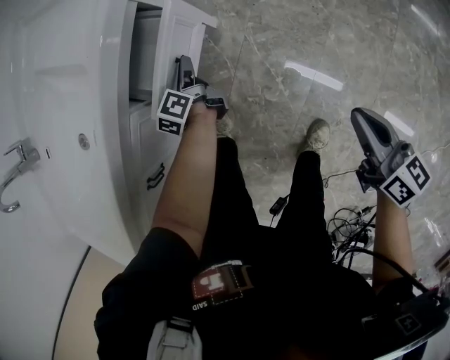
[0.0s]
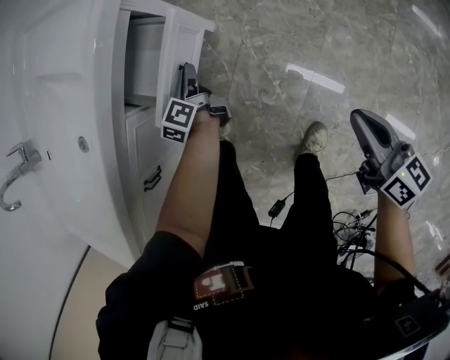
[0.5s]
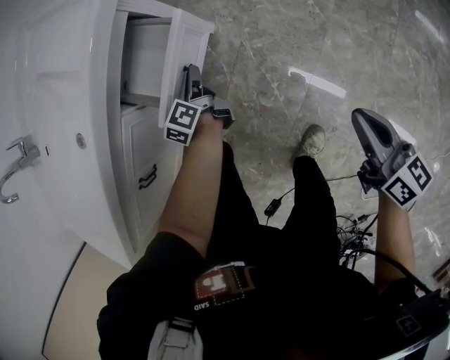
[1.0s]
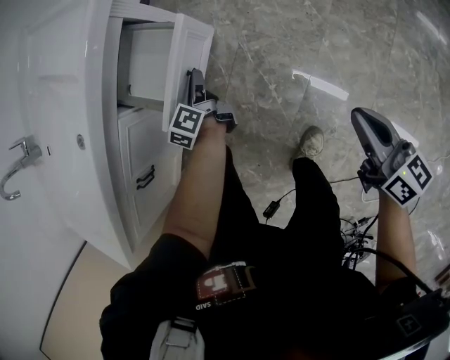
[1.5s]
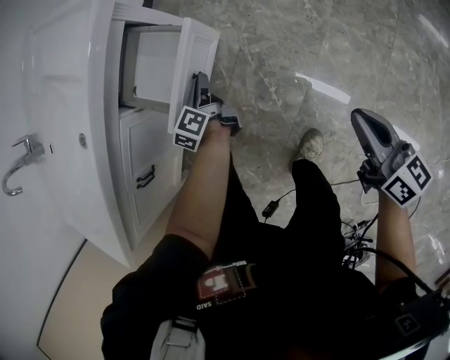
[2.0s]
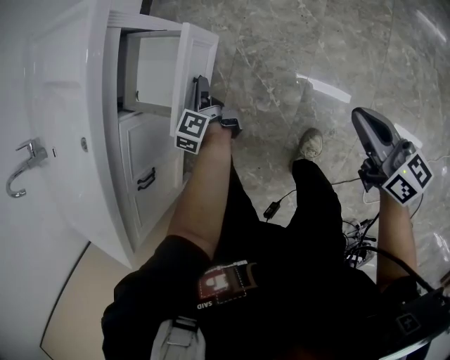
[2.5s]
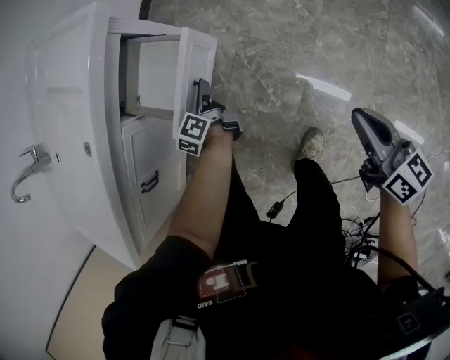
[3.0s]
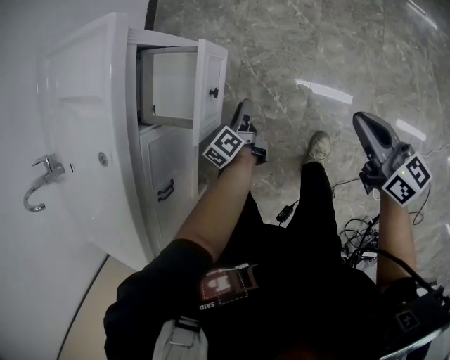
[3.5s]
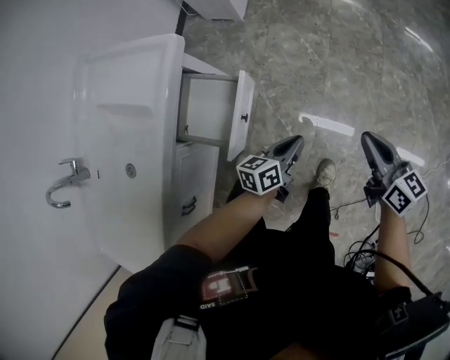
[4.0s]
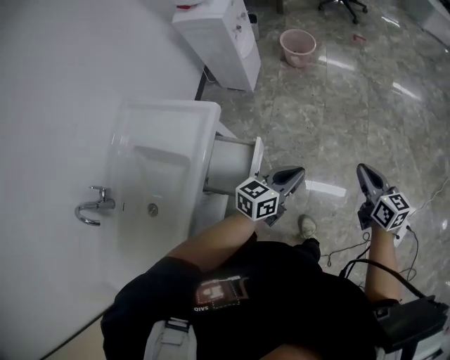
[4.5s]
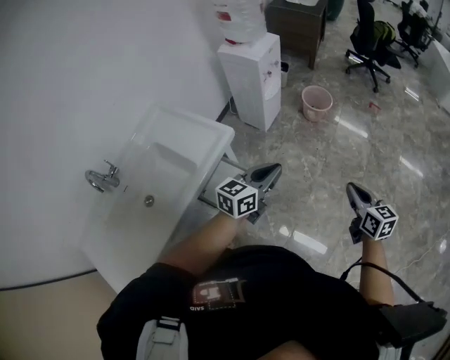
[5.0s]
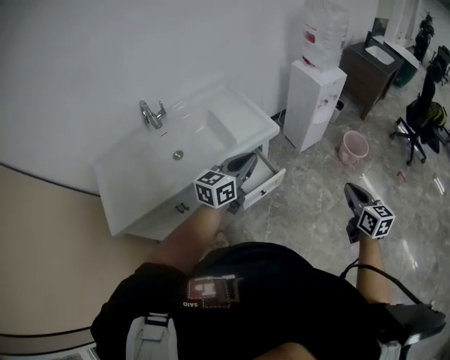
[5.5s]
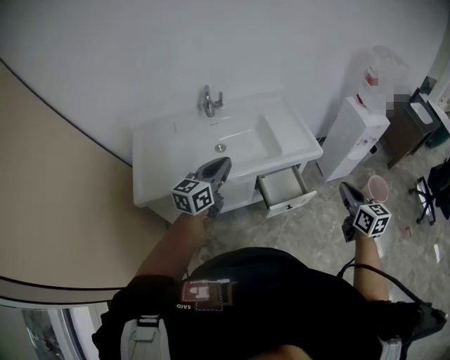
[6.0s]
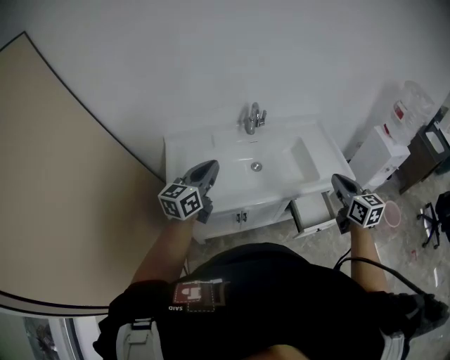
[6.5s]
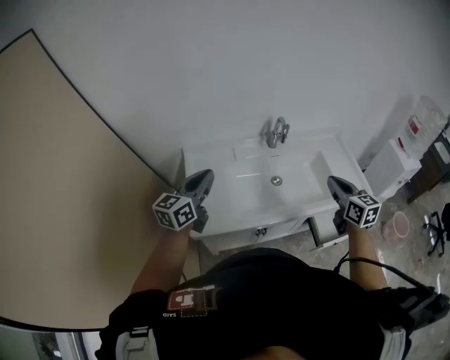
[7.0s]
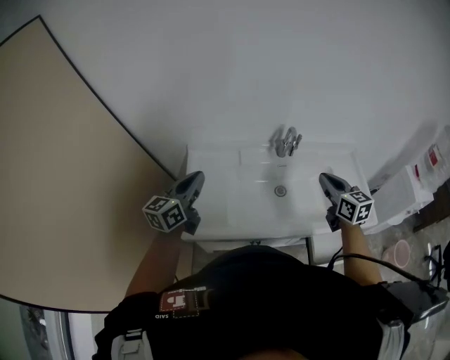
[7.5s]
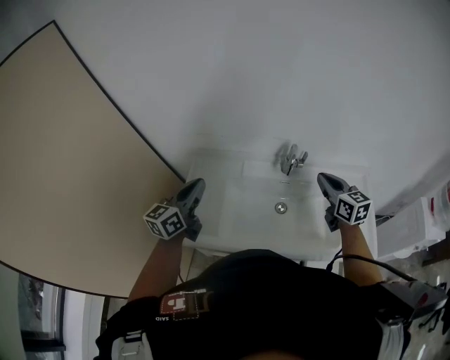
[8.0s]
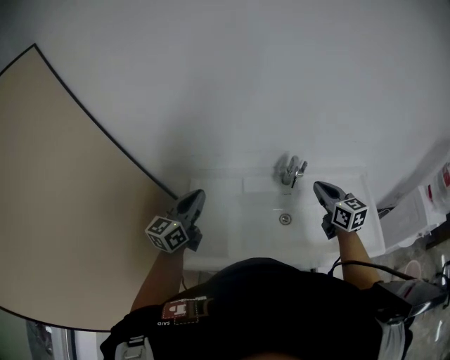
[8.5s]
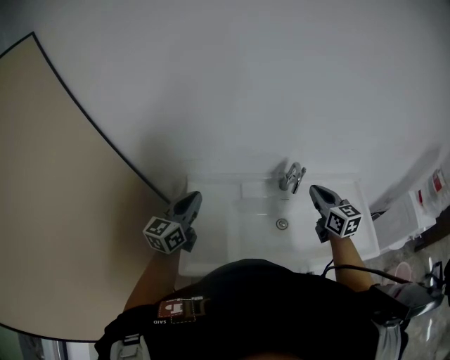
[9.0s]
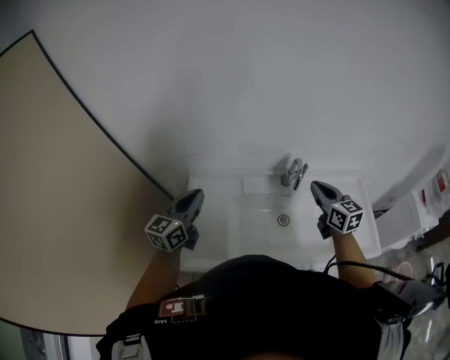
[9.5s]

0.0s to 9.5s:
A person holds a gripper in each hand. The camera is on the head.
0.0s to 2.0s: The right gripper goes some 5 cm to the right, while the left gripper goes about 10 cm backward and to the right.
2.0s to 4.0s: The right gripper is displaced upward by approximately 10 cm. The left gripper ends up some 25 cm from where it was, rotates about 60 degrees, and closes.
4.0s to 5.5s: The right gripper heads upward, covering roughly 25 cm, and swivels roughly 40 degrees, while the left gripper travels upward by some 40 cm, and changes its angle by approximately 50 degrees.
5.5s to 7.5s: Both grippers are carried some 70 cm. The left gripper changes its angle by approximately 40 degrees, while the right gripper swivels roughly 40 degrees.
7.5s to 9.5s: The grippers both shift forward by about 10 cm.

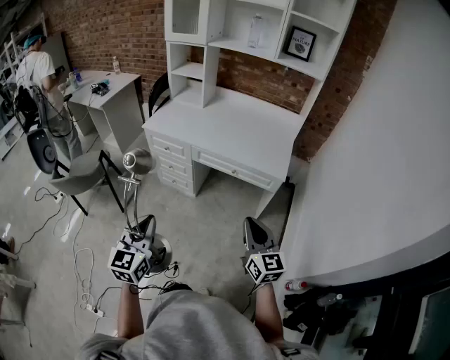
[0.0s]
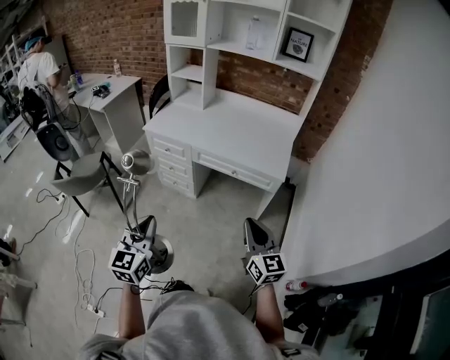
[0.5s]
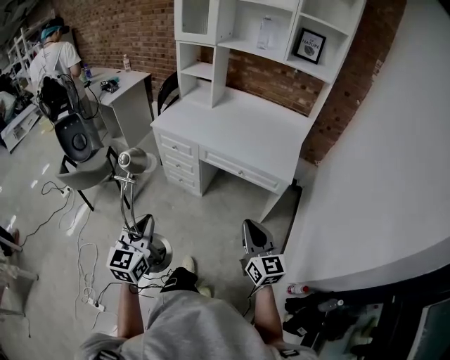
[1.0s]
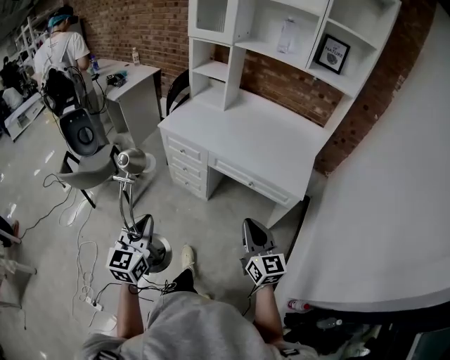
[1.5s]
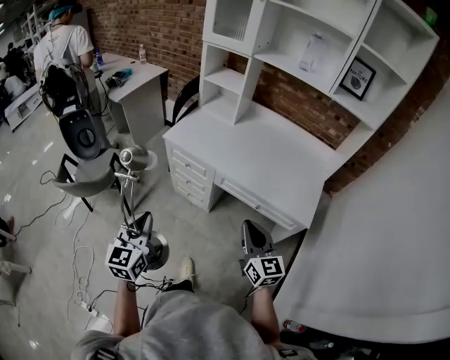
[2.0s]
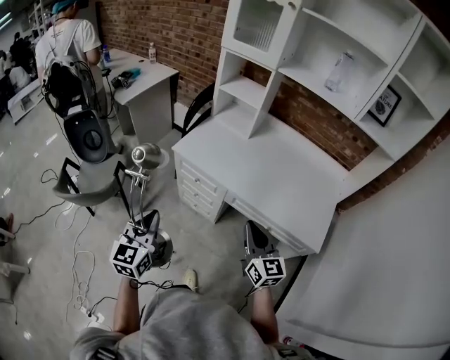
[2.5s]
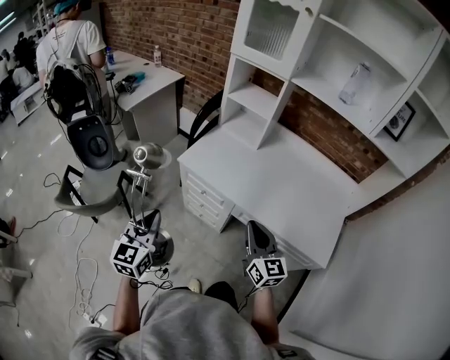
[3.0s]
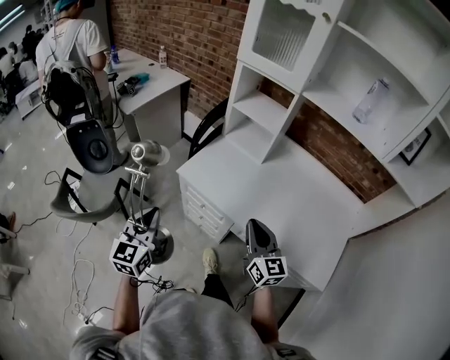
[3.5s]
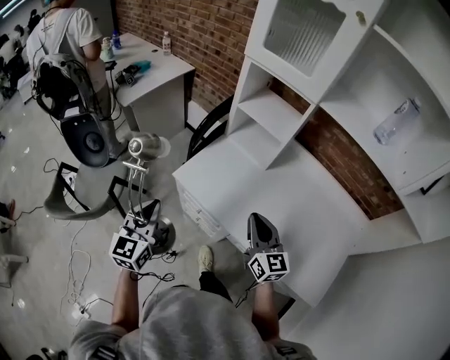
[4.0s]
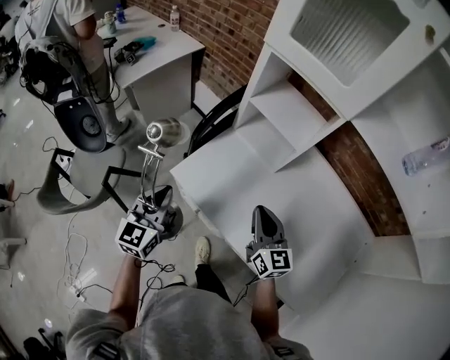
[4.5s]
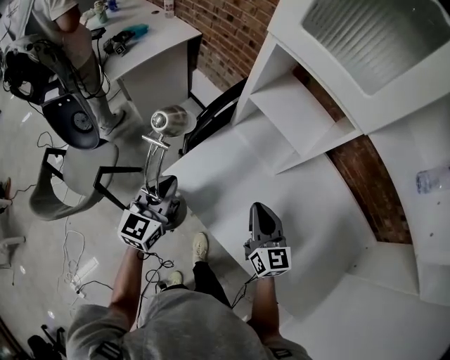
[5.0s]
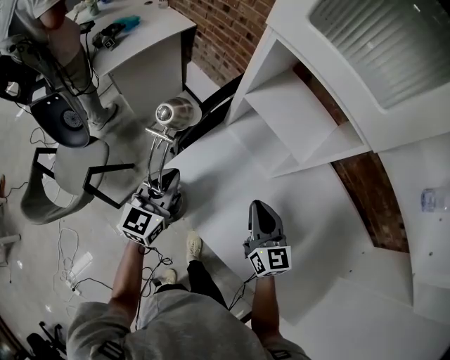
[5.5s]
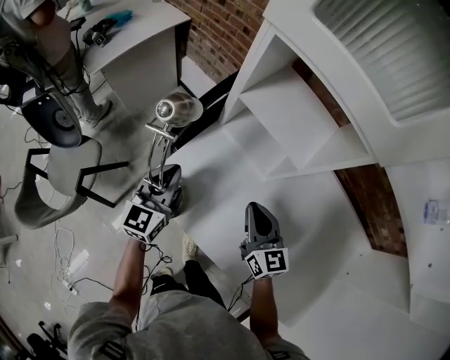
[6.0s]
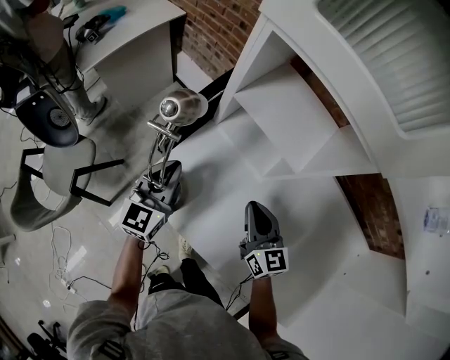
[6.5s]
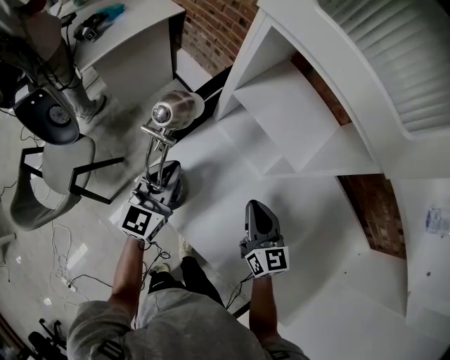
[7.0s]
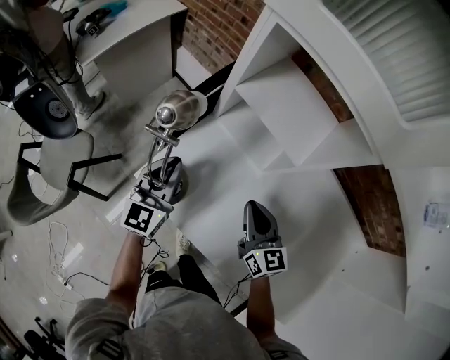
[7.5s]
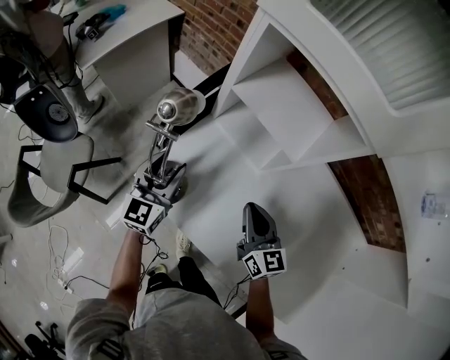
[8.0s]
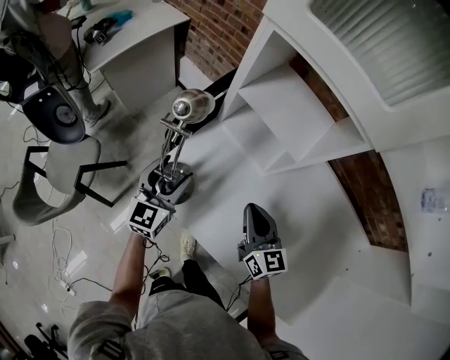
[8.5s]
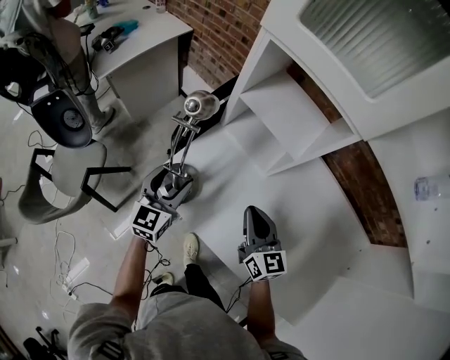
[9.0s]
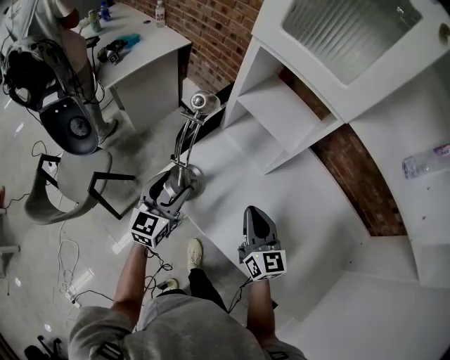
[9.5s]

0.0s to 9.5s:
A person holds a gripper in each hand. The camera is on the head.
0.0s to 2.0s: Both grippers move forward and to the left, approximately 20 cm.
2.0s to 4.0s: Both grippers move forward, approximately 40 cm.
4.0s to 5.5s: Both grippers move forward and downward, about 20 cm.
5.5s to 7.5s: The left gripper moves roughly 5 cm.
7.5s to 9.5s: The right gripper goes roughly 10 cm backward and upward, while the left gripper goes approximately 10 cm backward, and opens up.

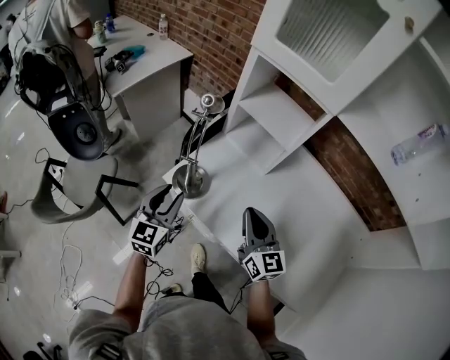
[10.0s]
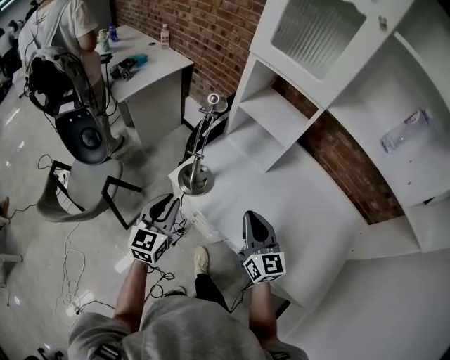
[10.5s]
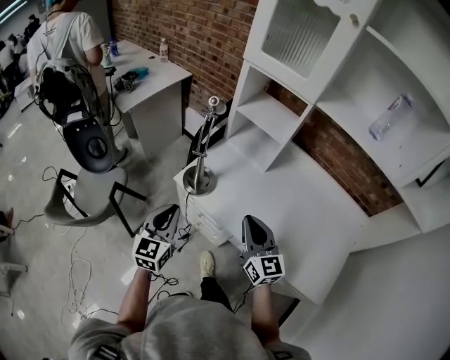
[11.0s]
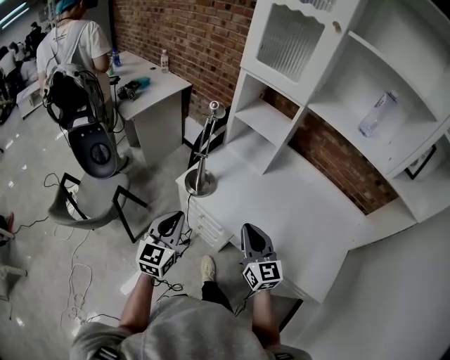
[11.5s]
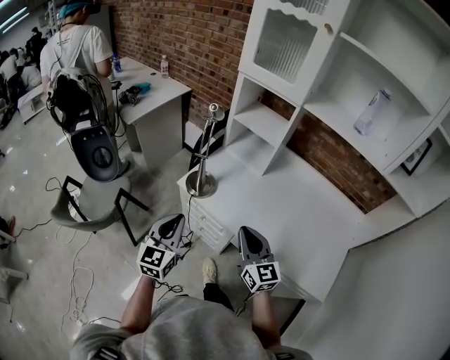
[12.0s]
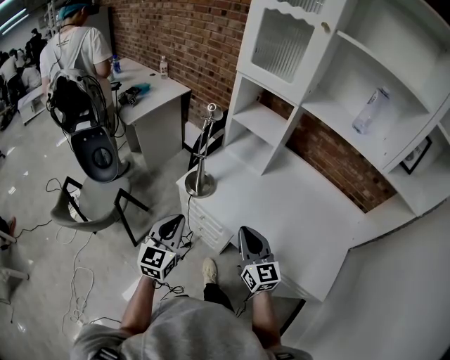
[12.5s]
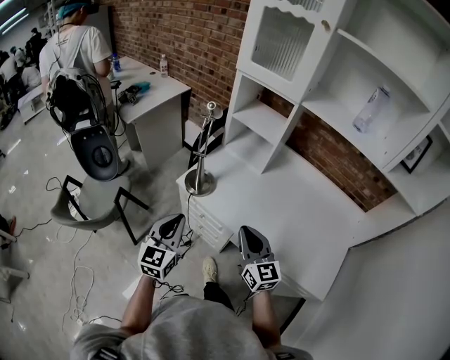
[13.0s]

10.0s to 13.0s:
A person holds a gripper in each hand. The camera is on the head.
10.0s to 11.5s: Both grippers travel together backward, roughly 15 cm. The left gripper closes.
11.5s to 13.0s: The grippers stay close to where they were, moving slightly.

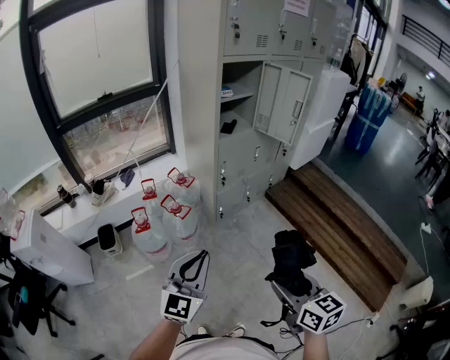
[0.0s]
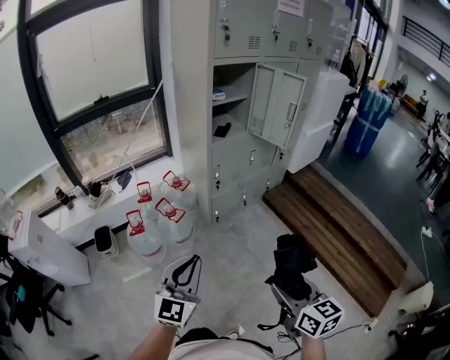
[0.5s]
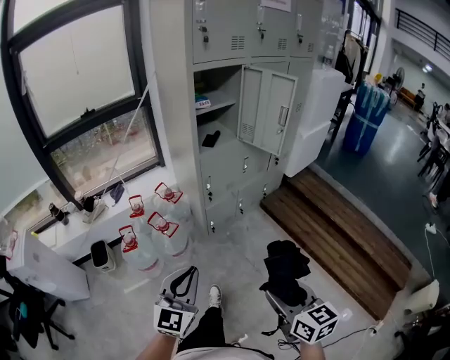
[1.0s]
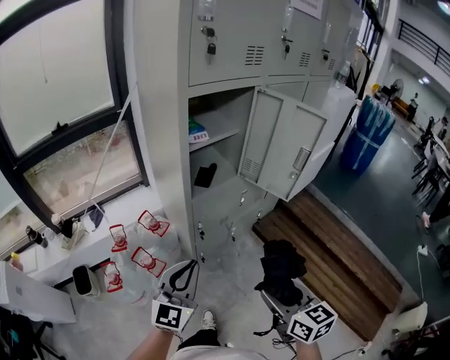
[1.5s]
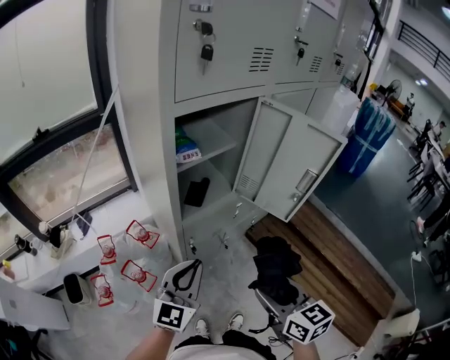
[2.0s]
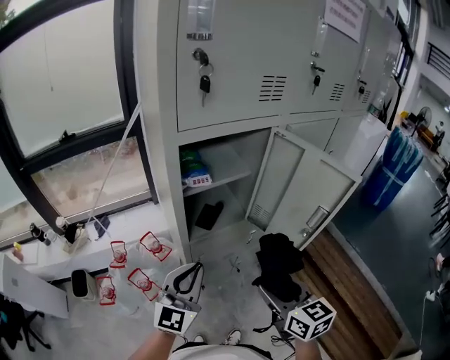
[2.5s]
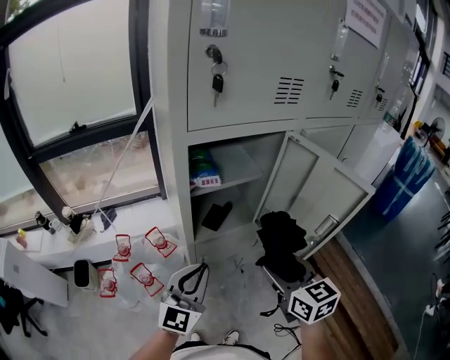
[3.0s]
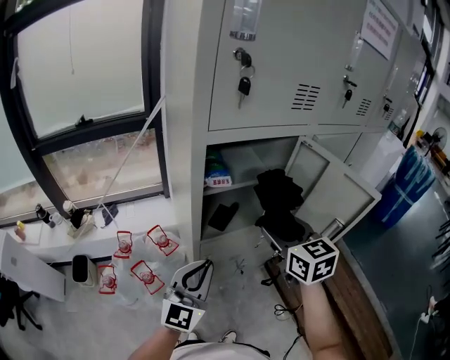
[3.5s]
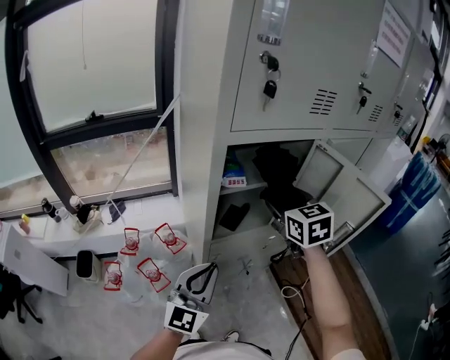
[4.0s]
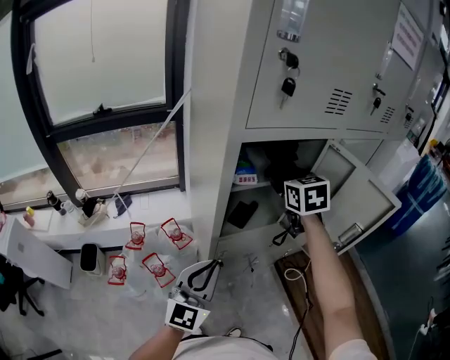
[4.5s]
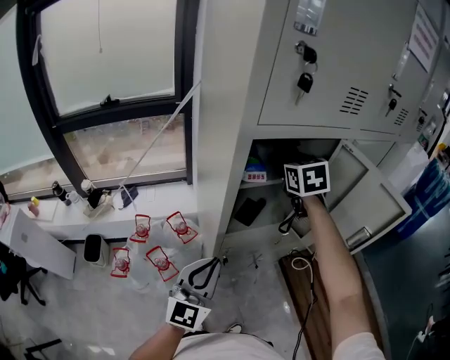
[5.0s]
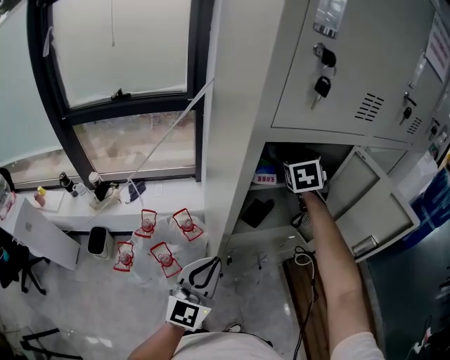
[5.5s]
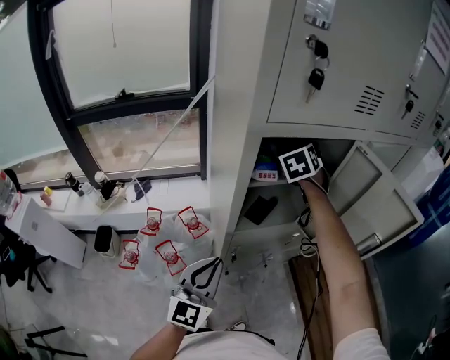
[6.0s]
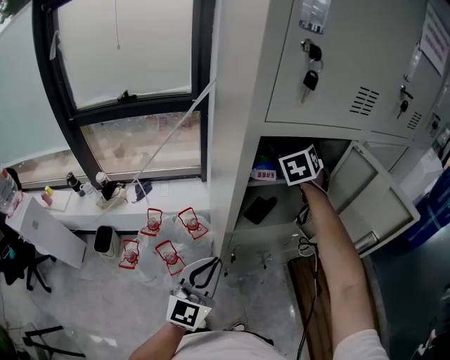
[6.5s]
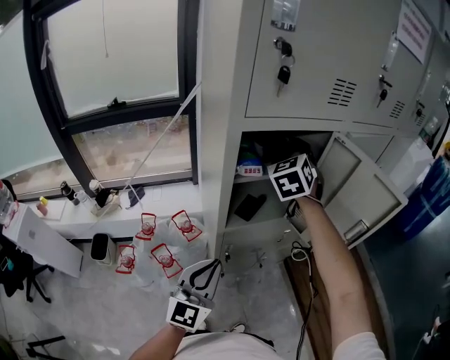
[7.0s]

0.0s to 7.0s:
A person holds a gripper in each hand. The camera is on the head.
0.0s to 2.0s: The pair of grippers is taken forward, about 50 cm.
2.0s to 3.5s: The left gripper is displaced forward by some 5 cm, while the right gripper moves forward, some 25 cm, and turns by some 20 degrees.
3.5s to 5.0s: The right gripper goes approximately 20 cm forward.
5.0s to 7.0s: The right gripper swivels approximately 30 degrees.
